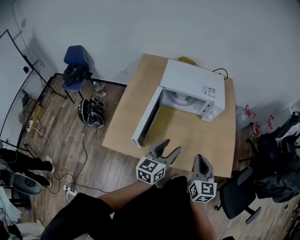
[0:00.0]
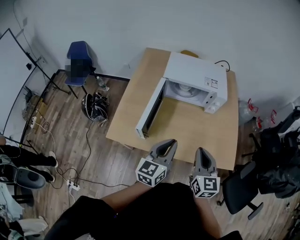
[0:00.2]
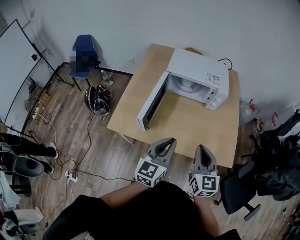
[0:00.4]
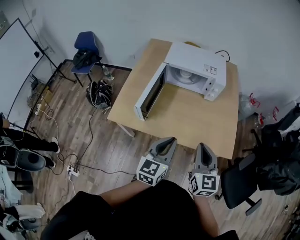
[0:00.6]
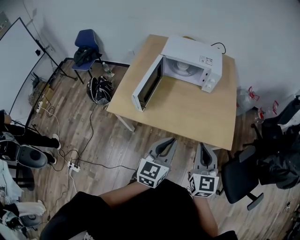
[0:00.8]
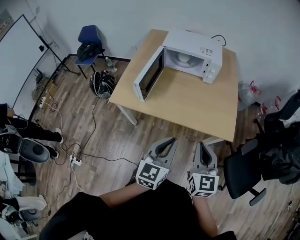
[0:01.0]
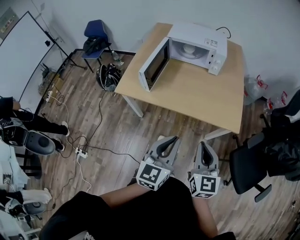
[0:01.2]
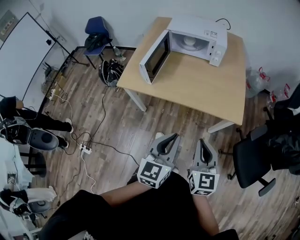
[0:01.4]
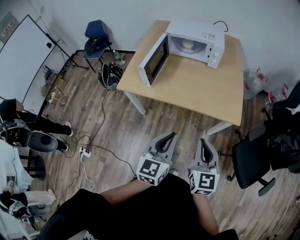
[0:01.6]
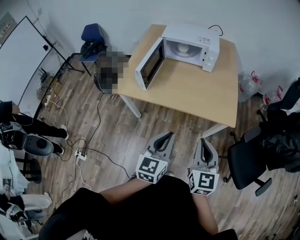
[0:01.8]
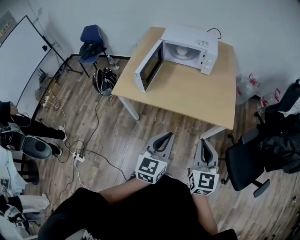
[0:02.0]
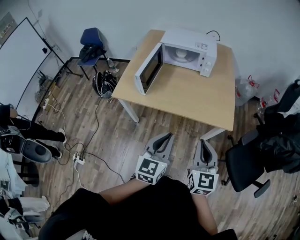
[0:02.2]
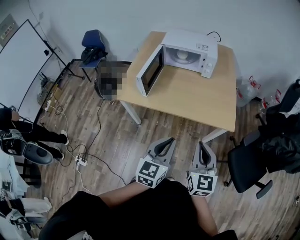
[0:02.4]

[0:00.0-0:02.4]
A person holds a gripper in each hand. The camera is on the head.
0:00.0 to 0:01.2: The two grippers go about 30 cm backward. The left gripper closes its fingers.
0:01.2 to 0:02.4: The grippers stay close to where they were, moving slightly.

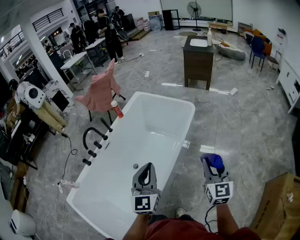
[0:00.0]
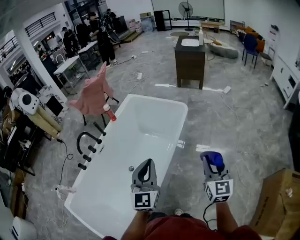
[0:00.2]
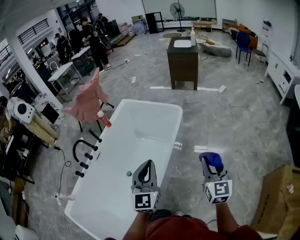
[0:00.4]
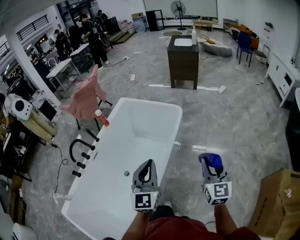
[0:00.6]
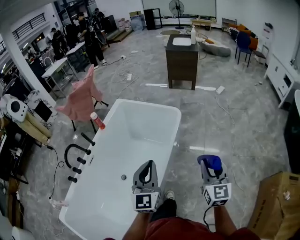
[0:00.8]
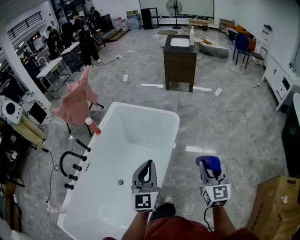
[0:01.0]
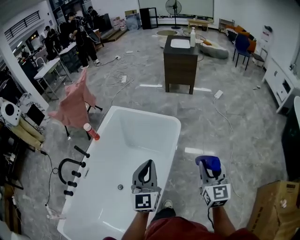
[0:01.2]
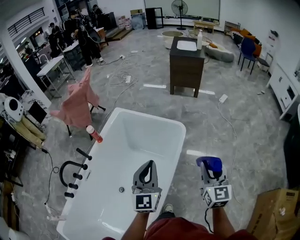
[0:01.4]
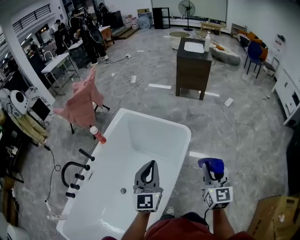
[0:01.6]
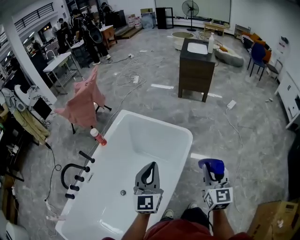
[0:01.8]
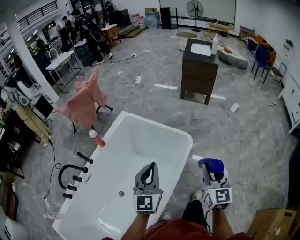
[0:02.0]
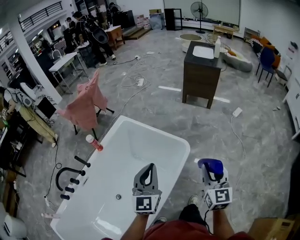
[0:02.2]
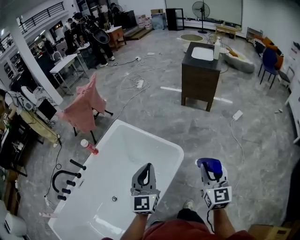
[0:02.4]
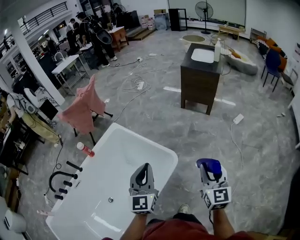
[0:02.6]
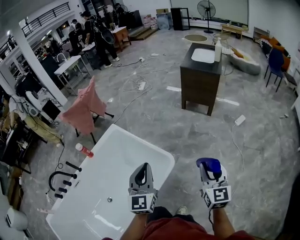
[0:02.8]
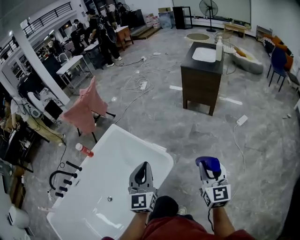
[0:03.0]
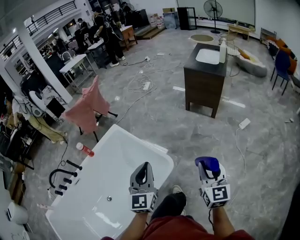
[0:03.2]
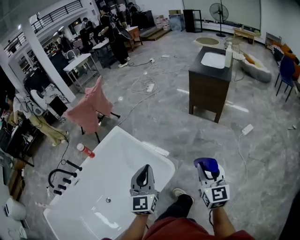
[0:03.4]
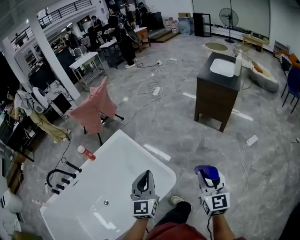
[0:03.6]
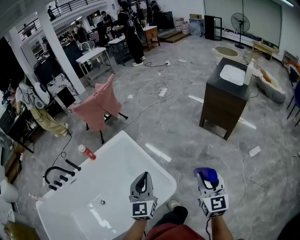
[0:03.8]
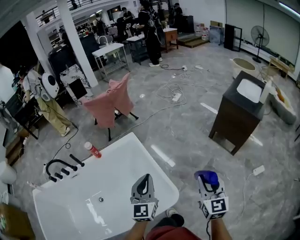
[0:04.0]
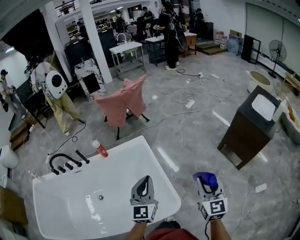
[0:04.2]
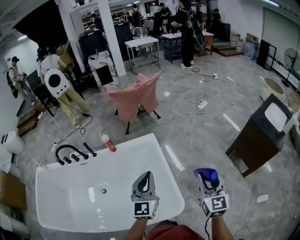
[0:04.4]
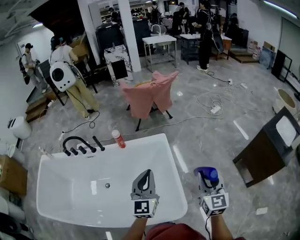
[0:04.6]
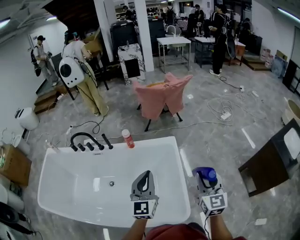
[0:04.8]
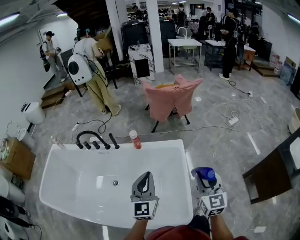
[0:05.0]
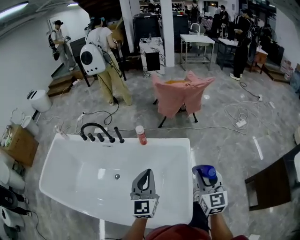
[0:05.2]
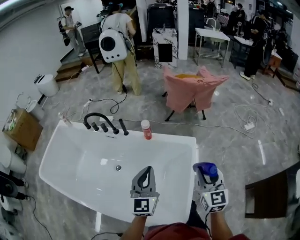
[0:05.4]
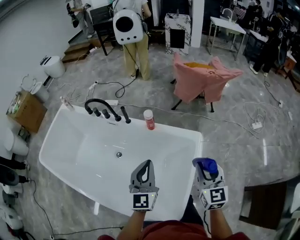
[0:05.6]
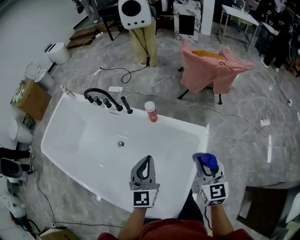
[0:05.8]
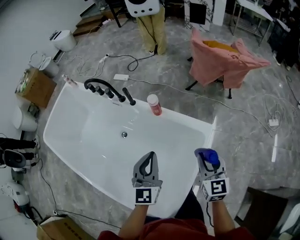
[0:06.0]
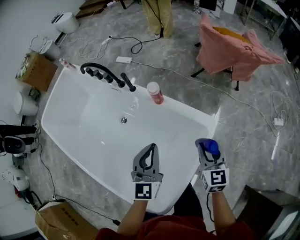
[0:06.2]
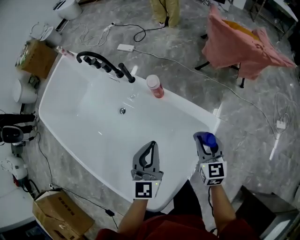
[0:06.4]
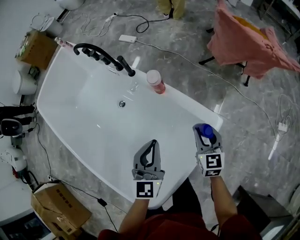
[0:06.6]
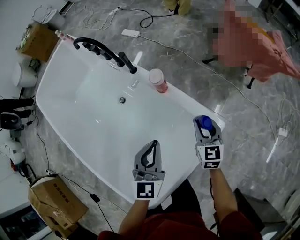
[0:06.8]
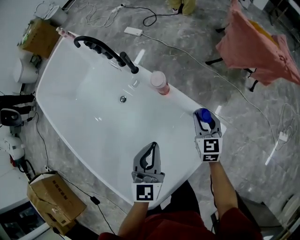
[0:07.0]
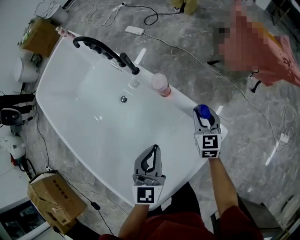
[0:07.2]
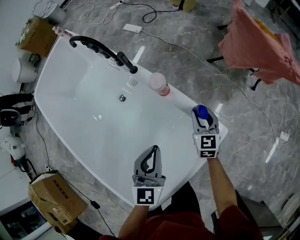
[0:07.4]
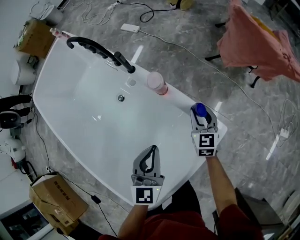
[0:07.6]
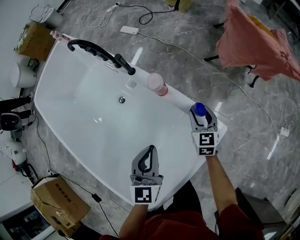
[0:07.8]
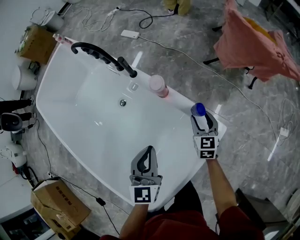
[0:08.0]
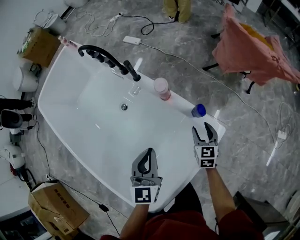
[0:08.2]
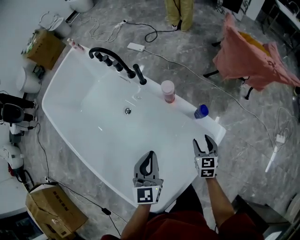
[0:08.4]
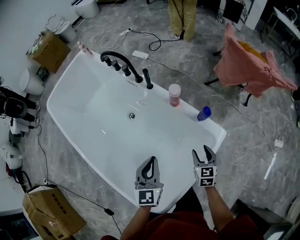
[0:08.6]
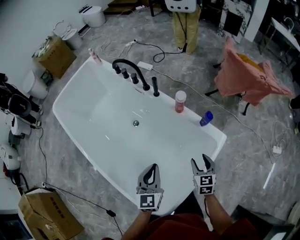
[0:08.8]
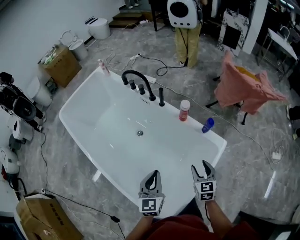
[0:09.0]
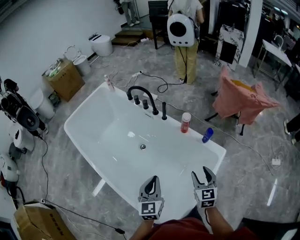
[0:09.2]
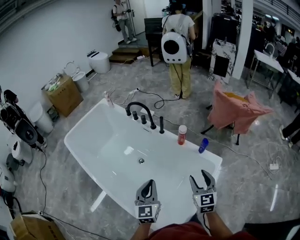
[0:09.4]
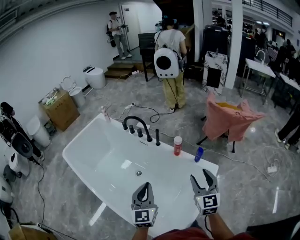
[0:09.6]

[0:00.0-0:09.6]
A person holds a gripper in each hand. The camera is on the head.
0:00.0 to 0:01.6: Both grippers move forward, roughly 35 cm.
0:01.6 to 0:03.2: The right gripper travels forward and to the right by some 40 cm; the left gripper moves to the right and forward, approximately 35 cm.
0:03.2 to 0:04.8: The left gripper moves roughly 30 cm, and swivels some 50 degrees; the right gripper changes place by roughly 50 cm, and turns by some 50 degrees.
0:04.8 to 0:06.4: The left gripper ends up approximately 30 cm from where it was, and swivels roughly 40 degrees. The right gripper ends up approximately 50 cm from where it was, and turns by roughly 40 degrees.
0:06.4 to 0:08.0: The right gripper heads forward and downward, covering about 20 cm. The left gripper heads downward, covering about 5 cm.
0:08.0 to 0:09.6: The right gripper travels upward, backward and to the left by roughly 50 cm, and turns by roughly 30 degrees, while the left gripper shifts approximately 35 cm upward, to the left and backward.

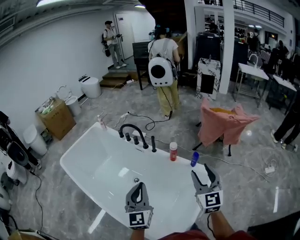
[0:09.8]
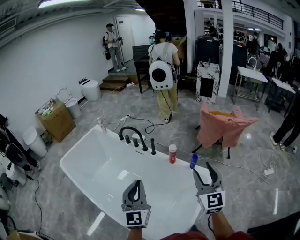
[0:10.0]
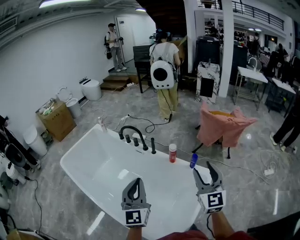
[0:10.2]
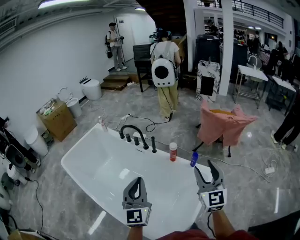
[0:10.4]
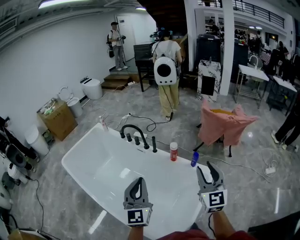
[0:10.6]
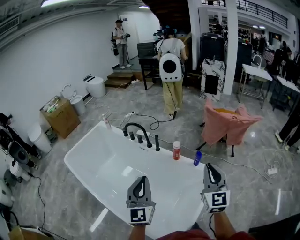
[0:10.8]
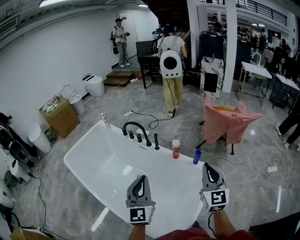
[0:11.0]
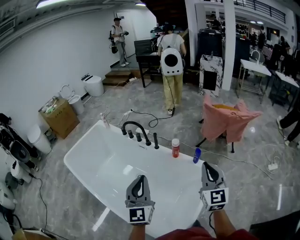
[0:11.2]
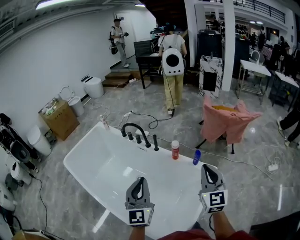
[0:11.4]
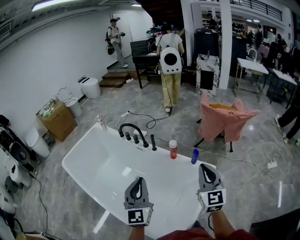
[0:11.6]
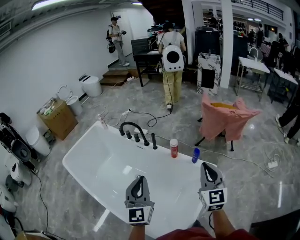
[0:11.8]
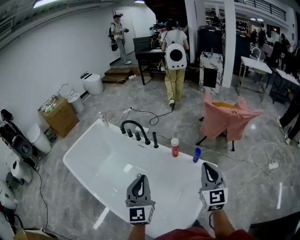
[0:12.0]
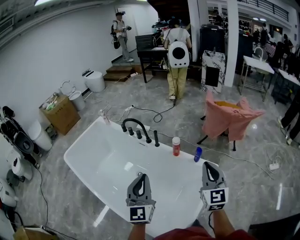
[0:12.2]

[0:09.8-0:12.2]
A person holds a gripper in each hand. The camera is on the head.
0:09.8 to 0:11.0: The right gripper closes its fingers.
0:11.0 to 0:12.2: There are only small adjustments of the grippers.

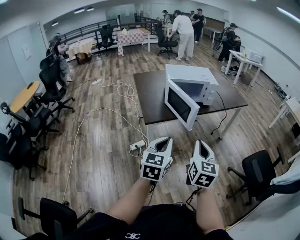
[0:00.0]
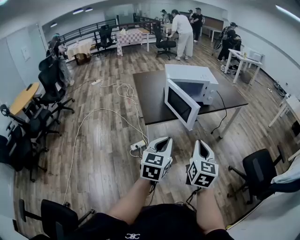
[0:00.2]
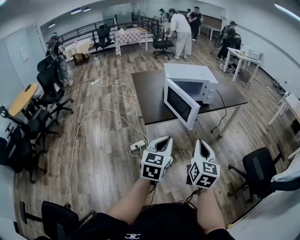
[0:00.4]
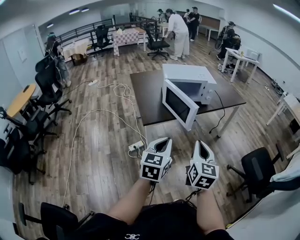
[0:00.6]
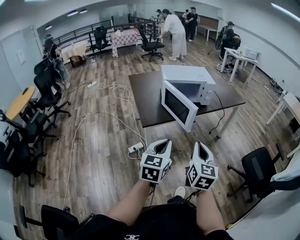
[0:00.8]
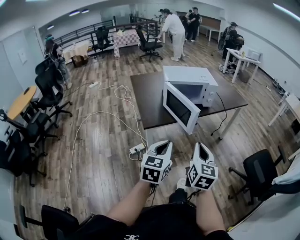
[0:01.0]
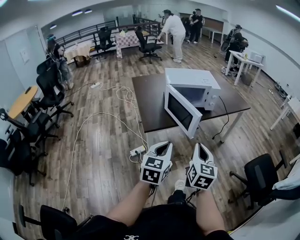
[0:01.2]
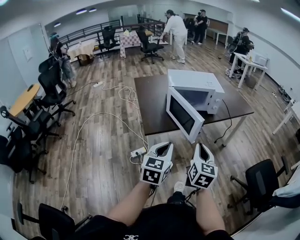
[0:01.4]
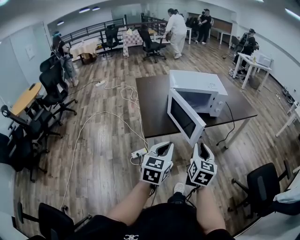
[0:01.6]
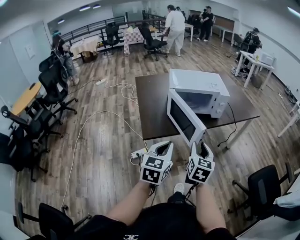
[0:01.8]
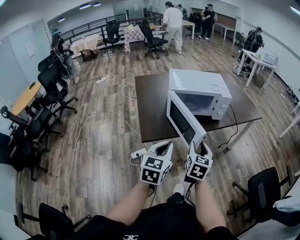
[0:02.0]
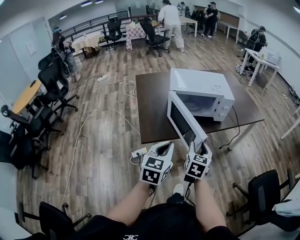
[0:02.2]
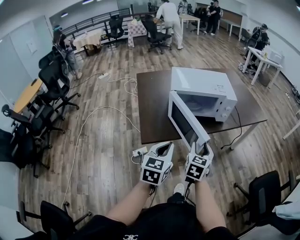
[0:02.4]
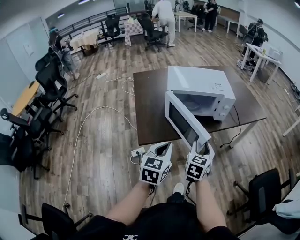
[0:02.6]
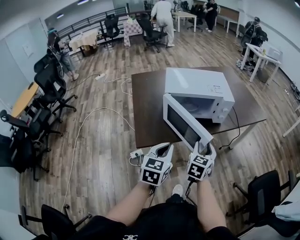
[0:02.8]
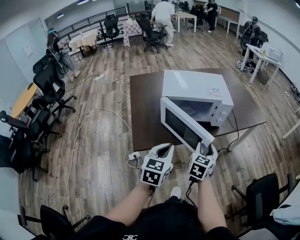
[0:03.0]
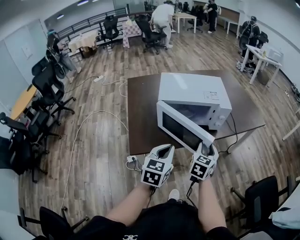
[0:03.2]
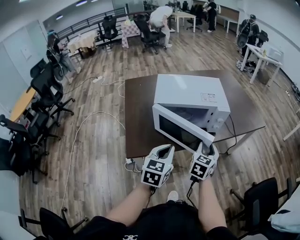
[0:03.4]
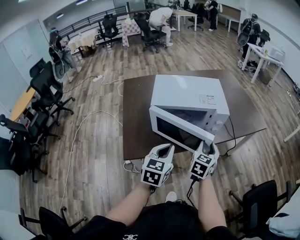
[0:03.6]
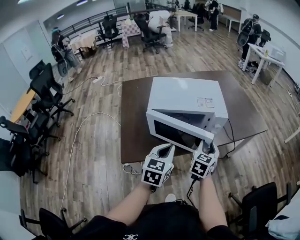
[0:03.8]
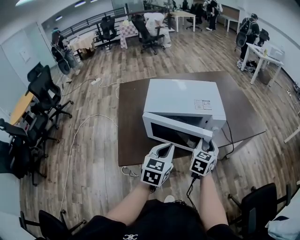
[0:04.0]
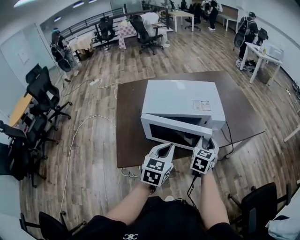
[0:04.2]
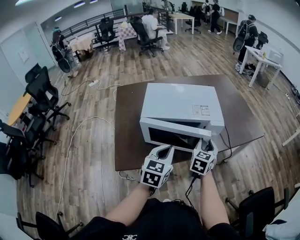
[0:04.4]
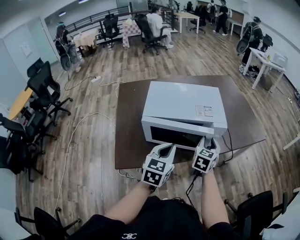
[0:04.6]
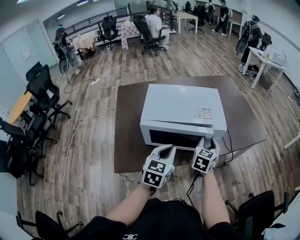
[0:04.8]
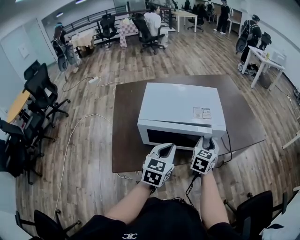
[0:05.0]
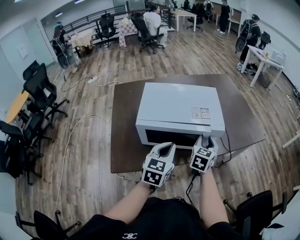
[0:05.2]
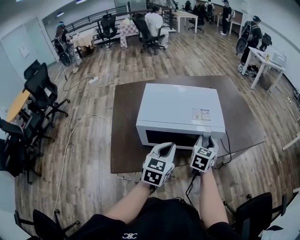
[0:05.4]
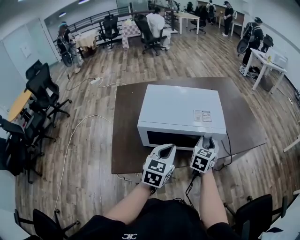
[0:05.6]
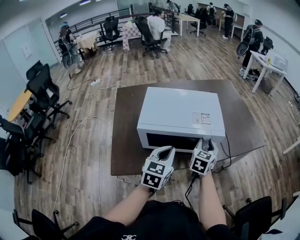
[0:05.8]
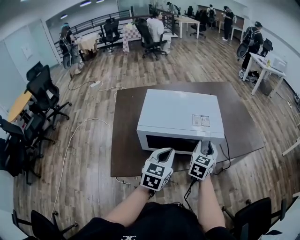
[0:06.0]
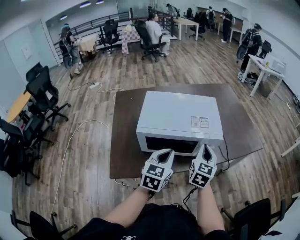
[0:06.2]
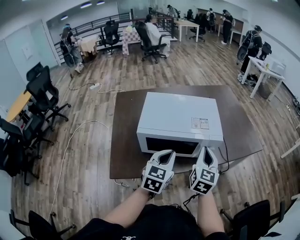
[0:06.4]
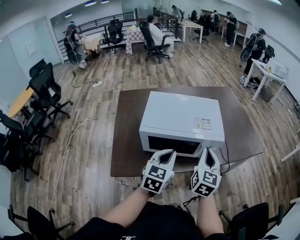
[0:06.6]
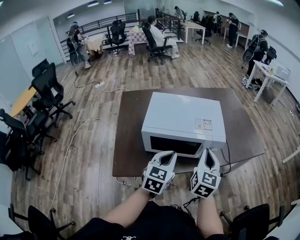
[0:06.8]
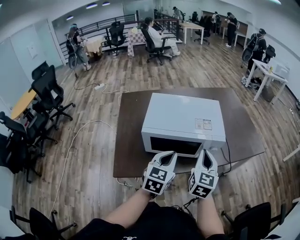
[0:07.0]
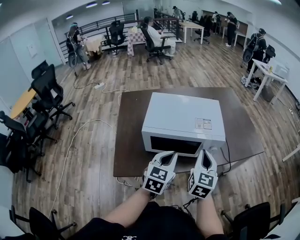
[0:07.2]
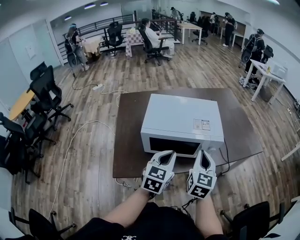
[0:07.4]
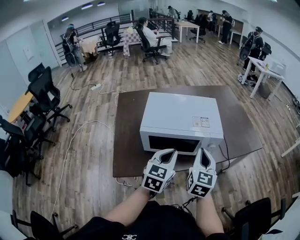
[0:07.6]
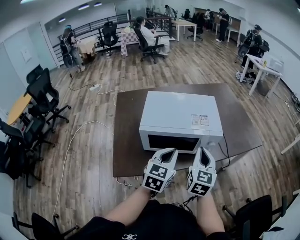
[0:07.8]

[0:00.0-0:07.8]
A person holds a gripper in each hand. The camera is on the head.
0:00.0 to 0:01.6: Both grippers travel together forward, about 15 cm.
0:01.6 to 0:03.2: The grippers both shift forward by approximately 25 cm.
0:03.2 to 0:04.6: Both grippers move forward, some 15 cm.
0:04.6 to 0:06.2: The right gripper closes.
0:06.2 to 0:07.8: The right gripper shifts approximately 5 cm backward.

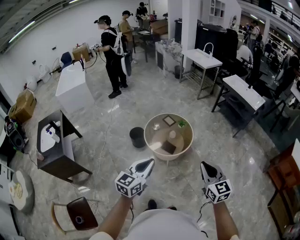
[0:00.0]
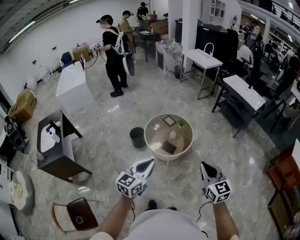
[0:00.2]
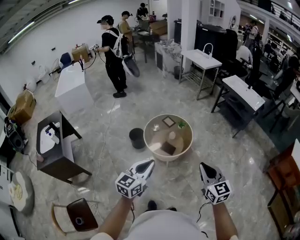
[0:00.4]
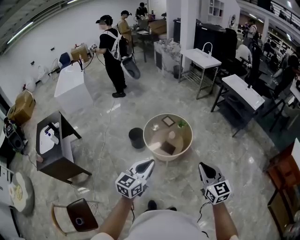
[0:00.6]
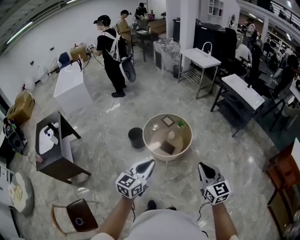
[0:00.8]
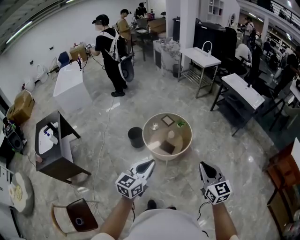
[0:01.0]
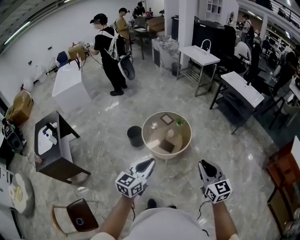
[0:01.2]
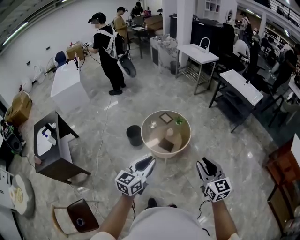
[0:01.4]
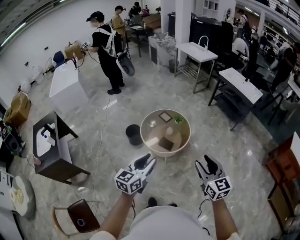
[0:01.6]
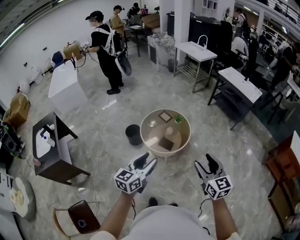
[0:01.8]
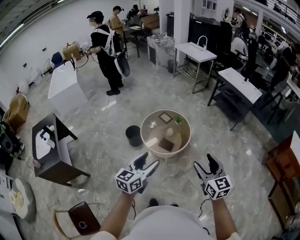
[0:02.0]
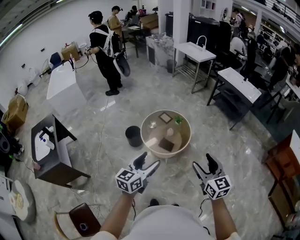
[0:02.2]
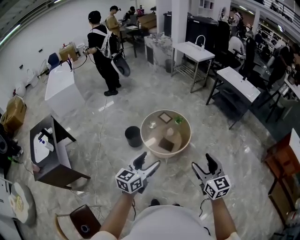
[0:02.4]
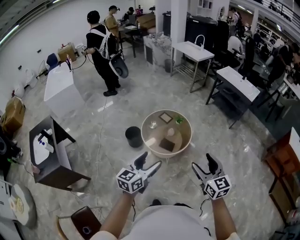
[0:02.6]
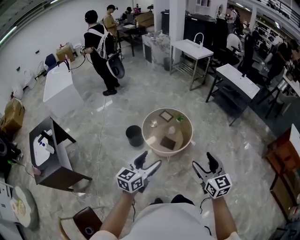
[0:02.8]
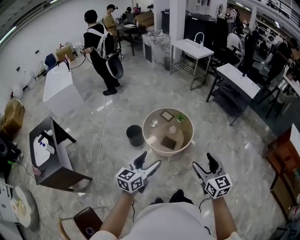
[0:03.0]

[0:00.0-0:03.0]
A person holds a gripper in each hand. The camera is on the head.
0:00.0 to 0:01.6: The right gripper opens.
0:01.6 to 0:03.0: Both grippers travel together to the left, approximately 10 cm. The left gripper opens. Meanwhile the right gripper opens up.
